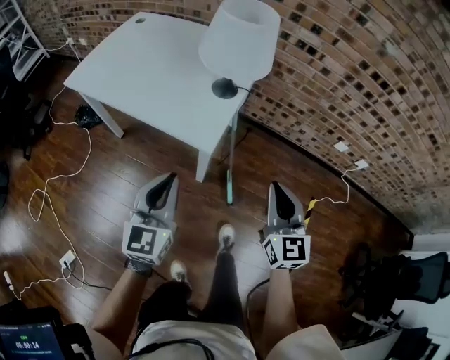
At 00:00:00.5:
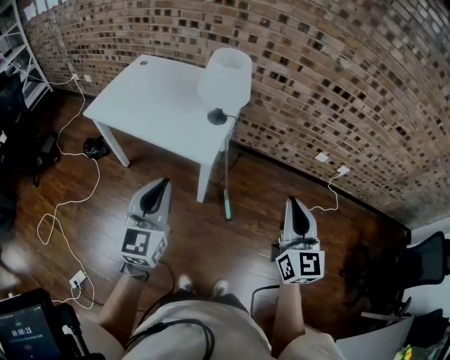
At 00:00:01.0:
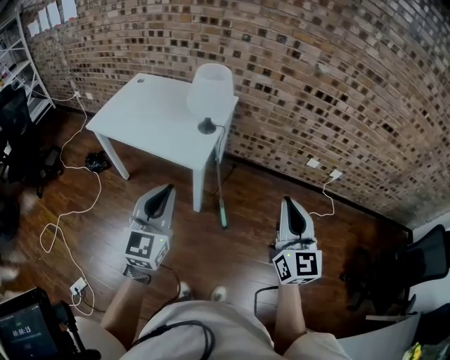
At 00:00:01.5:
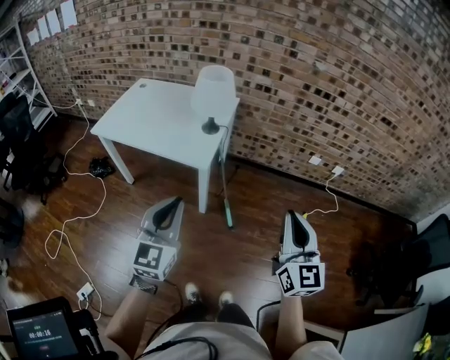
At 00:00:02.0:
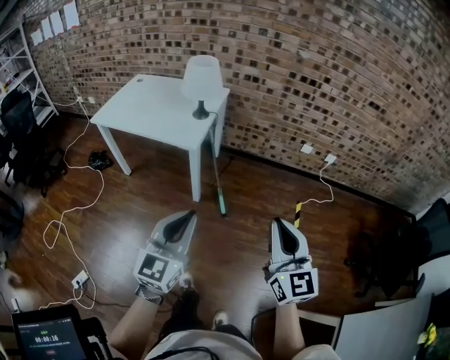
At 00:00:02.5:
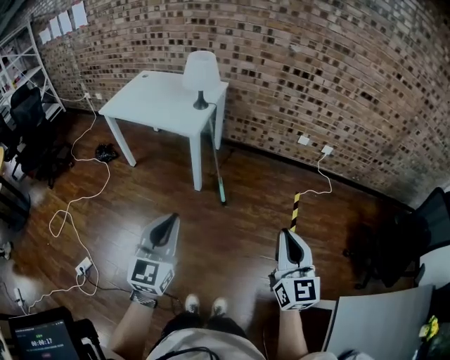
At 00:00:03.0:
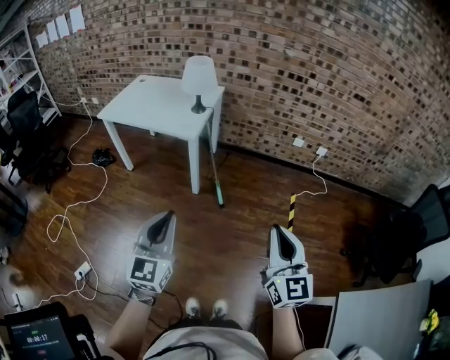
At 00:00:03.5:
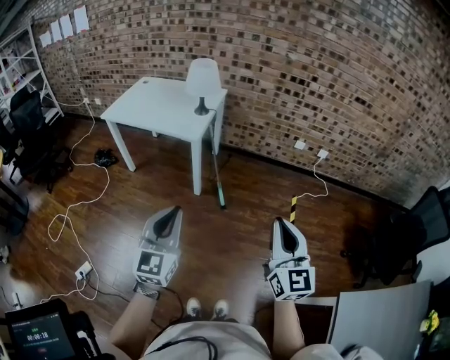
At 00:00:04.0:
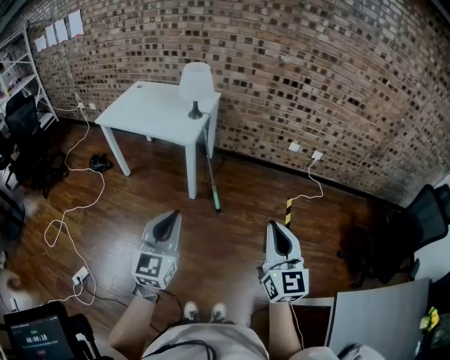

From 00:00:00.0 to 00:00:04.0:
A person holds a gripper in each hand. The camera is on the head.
From 00:00:00.0 to 00:00:02.0: The right gripper goes approximately 40 cm backward and upward, while the left gripper goes approximately 40 cm backward, upward and to the right.
From 00:00:02.0 to 00:00:04.0: The grippers both shift backward by roughly 15 cm.

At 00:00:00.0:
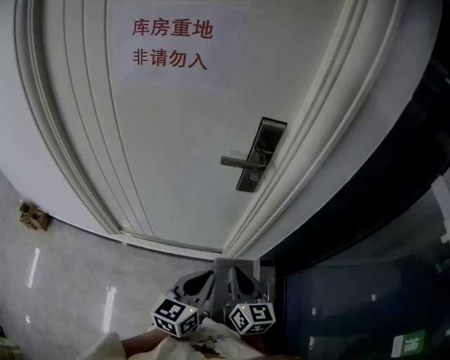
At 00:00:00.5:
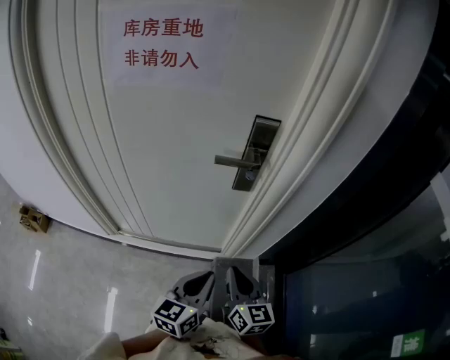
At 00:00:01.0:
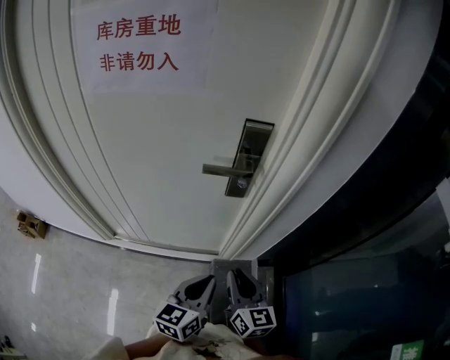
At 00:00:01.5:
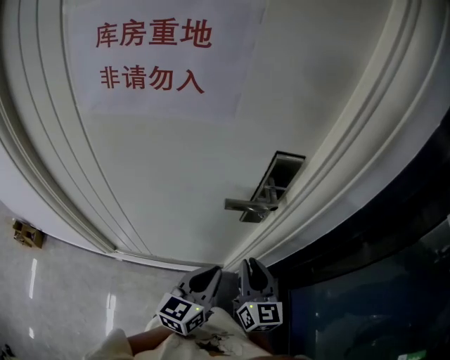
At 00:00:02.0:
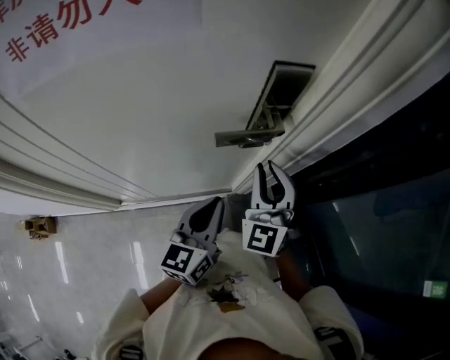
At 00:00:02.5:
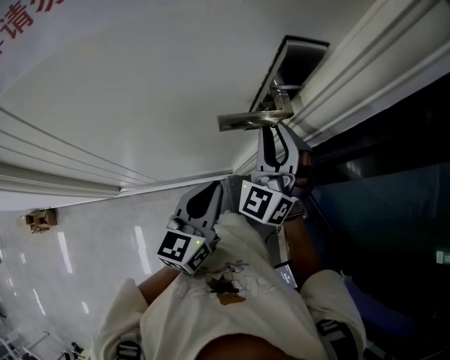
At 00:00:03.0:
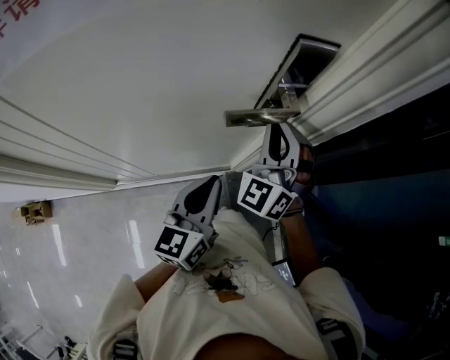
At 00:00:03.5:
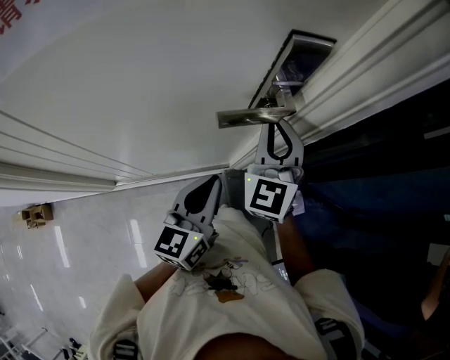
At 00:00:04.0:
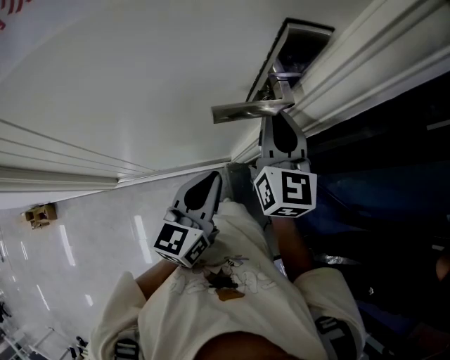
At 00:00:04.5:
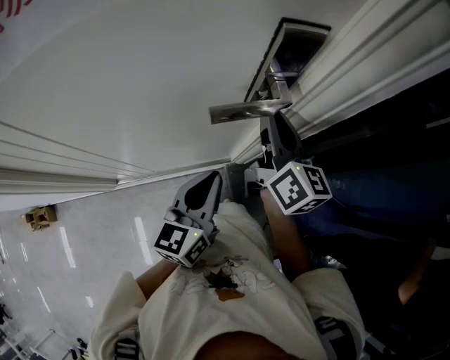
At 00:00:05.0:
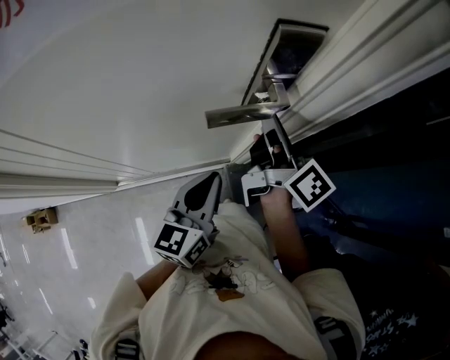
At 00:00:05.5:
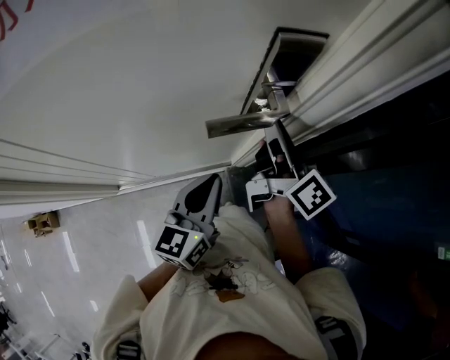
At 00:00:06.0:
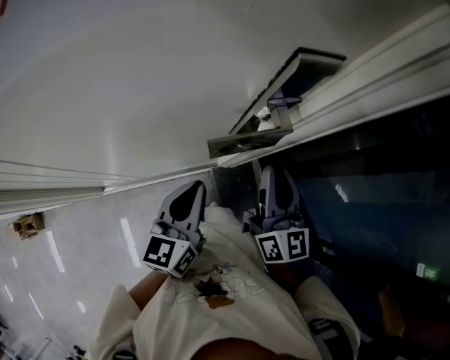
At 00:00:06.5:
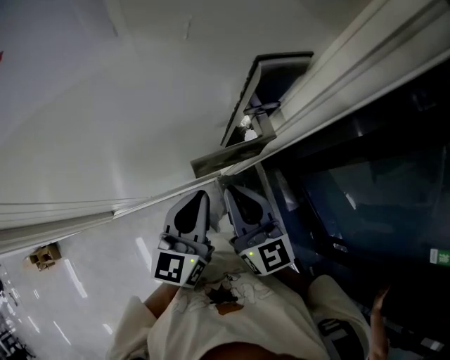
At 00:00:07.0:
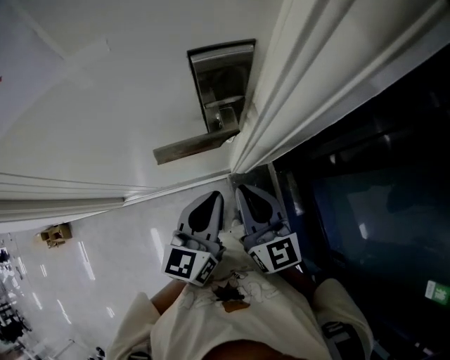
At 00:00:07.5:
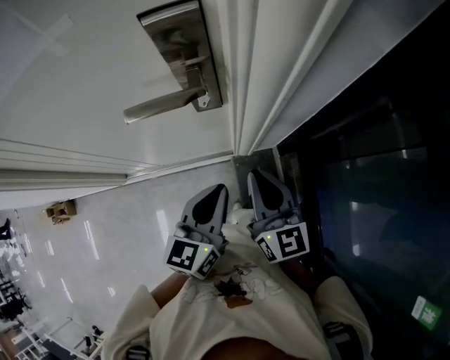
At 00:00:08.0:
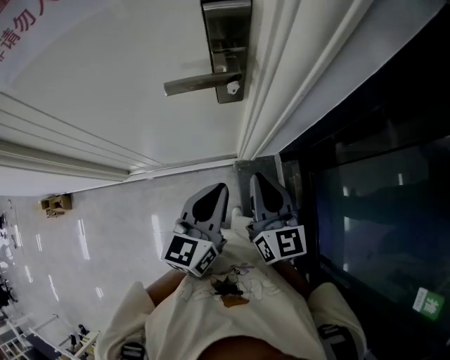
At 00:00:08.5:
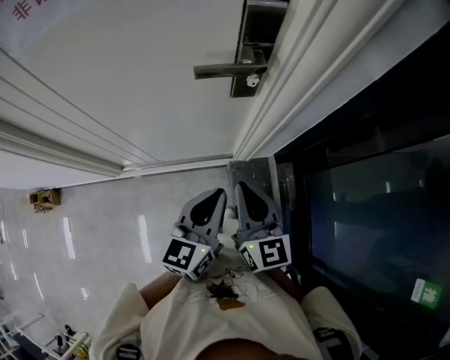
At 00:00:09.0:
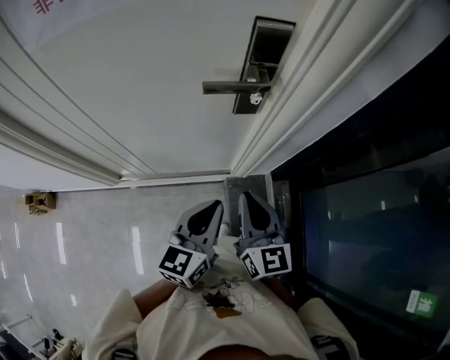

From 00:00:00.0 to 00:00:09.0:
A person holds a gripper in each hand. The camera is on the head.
From 00:00:00.0 to 00:00:02.0: Both grippers move forward, approximately 20 cm. The right gripper rolls counterclockwise, seen from behind, by roughly 50 degrees.
From 00:00:02.0 to 00:00:04.5: The right gripper is displaced forward by some 5 cm, and rotates around the line of its fingers by roughly 60 degrees, clockwise from behind.
From 00:00:04.5 to 00:00:07.0: The right gripper is displaced backward and downward by approximately 10 cm, and swivels about 20 degrees, while the left gripper travels to the right by roughly 5 cm.
From 00:00:07.0 to 00:00:09.0: Both grippers move backward, approximately 15 cm.

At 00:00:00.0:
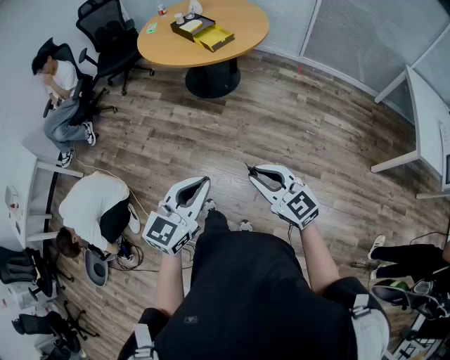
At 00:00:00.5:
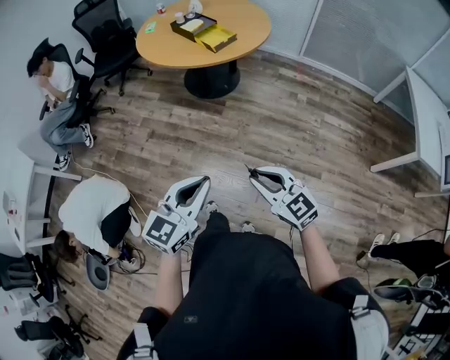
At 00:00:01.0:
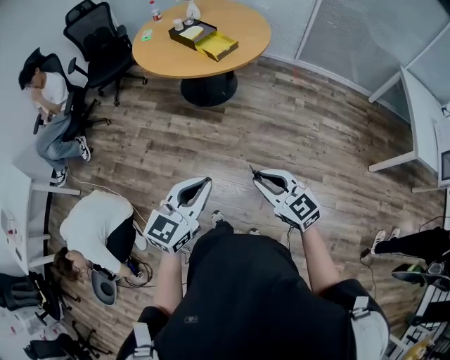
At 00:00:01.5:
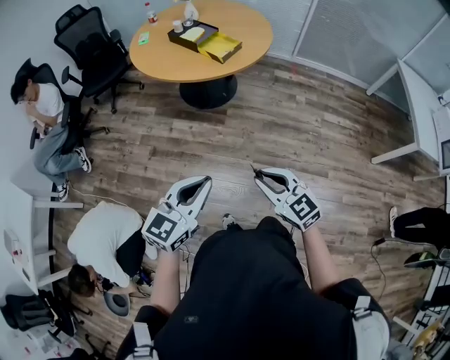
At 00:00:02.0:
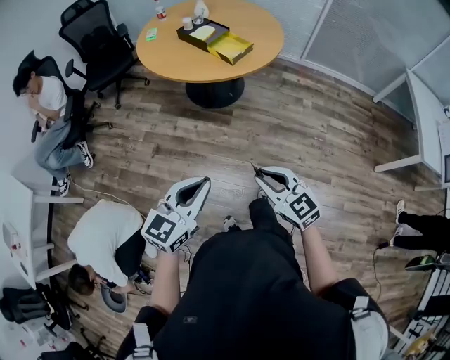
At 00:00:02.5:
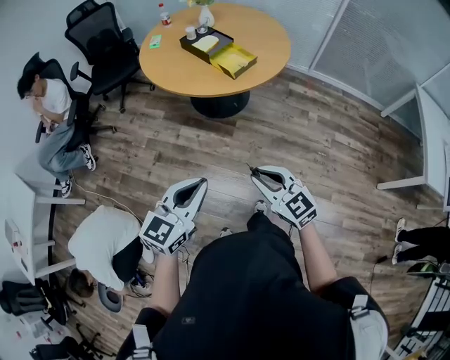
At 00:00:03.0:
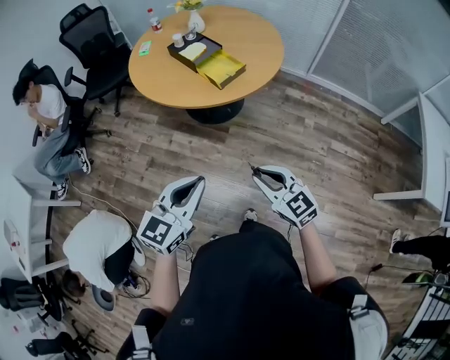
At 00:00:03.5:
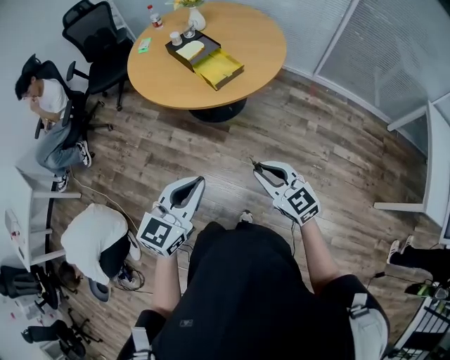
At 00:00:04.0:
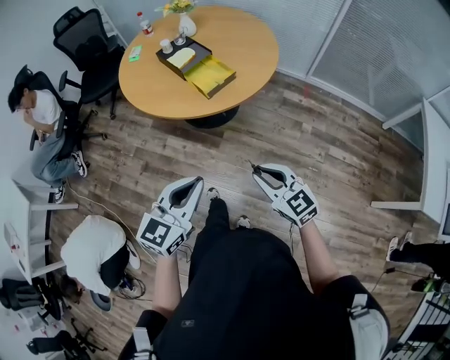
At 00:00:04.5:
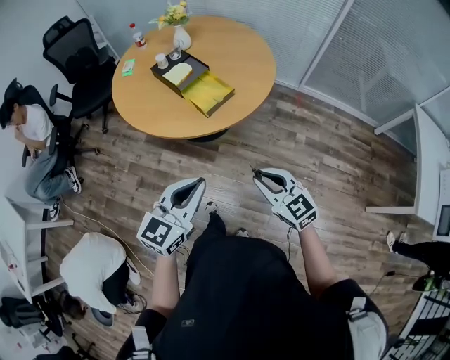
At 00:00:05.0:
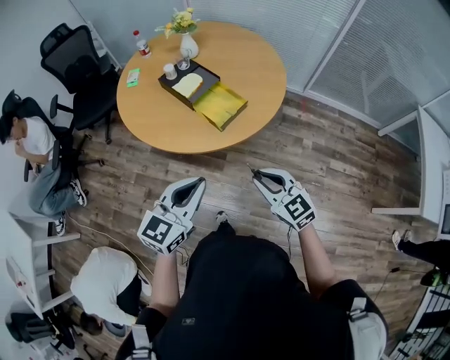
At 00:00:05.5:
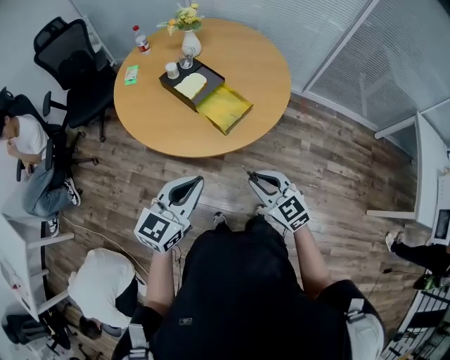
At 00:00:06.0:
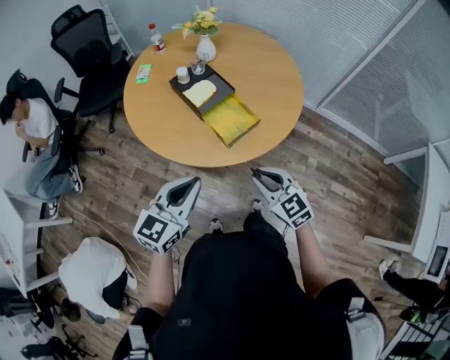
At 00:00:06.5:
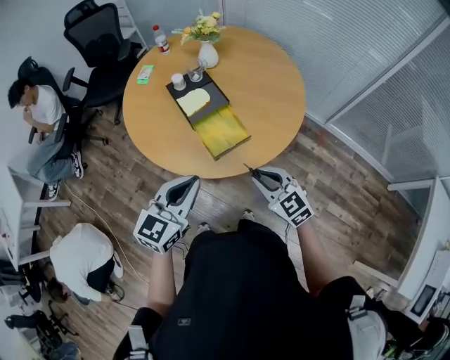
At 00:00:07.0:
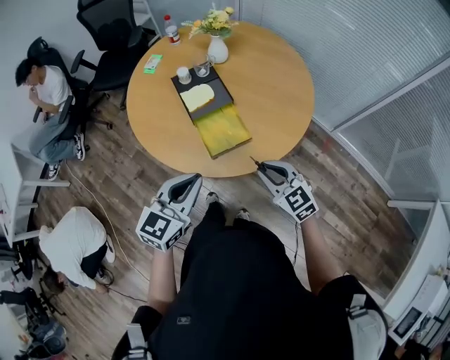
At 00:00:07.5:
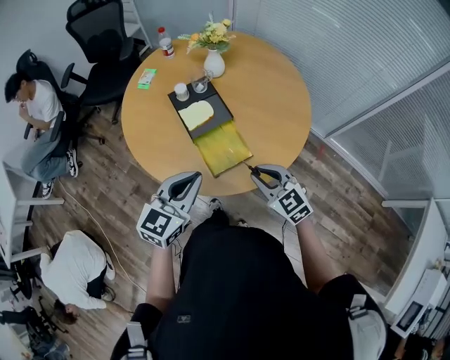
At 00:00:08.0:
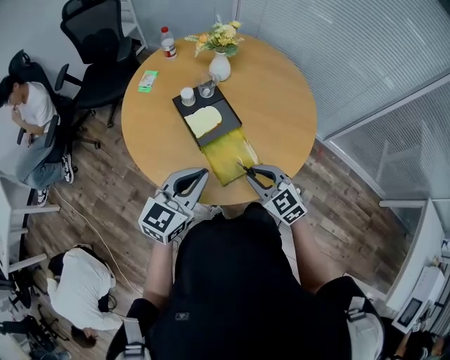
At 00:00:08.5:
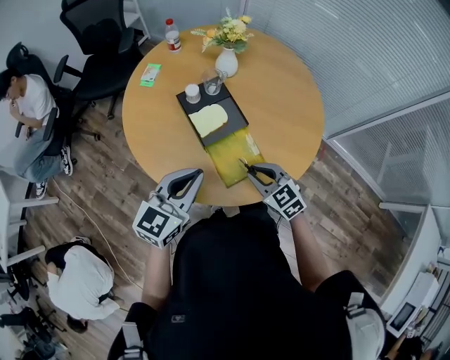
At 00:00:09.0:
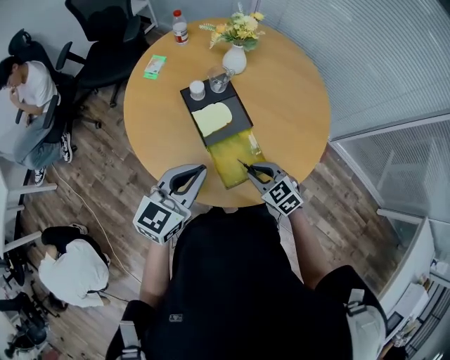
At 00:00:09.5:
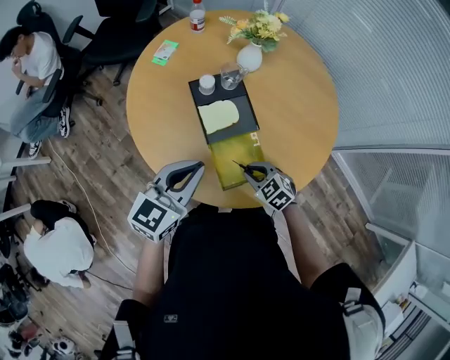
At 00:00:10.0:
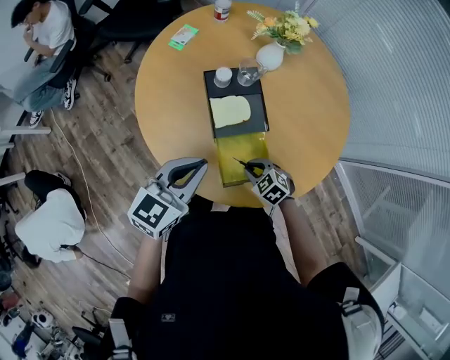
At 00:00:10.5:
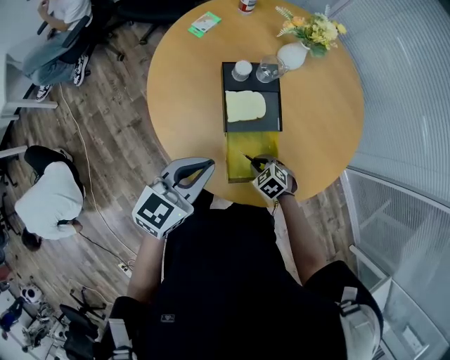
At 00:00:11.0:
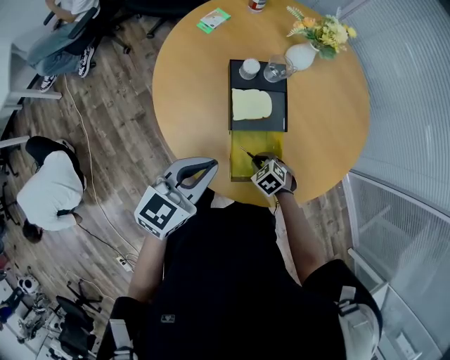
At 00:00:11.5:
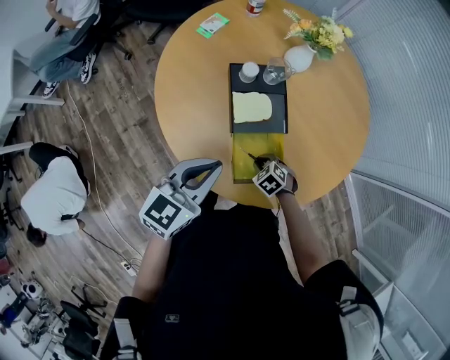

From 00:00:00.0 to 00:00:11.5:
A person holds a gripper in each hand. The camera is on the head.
From 00:00:00.0 to 00:00:02.0: The grippers both shift forward and to the left by about 25 cm.
From 00:00:02.0 to 00:00:04.0: The grippers both shift forward and to the right by some 30 cm.
From 00:00:04.0 to 00:00:06.0: Both grippers move forward, approximately 25 cm.
From 00:00:06.0 to 00:00:07.5: The grippers both shift forward and to the right by some 15 cm.
From 00:00:07.5 to 00:00:09.5: The left gripper shifts roughly 15 cm forward and to the left; the right gripper moves downward and forward, about 20 cm, and changes its angle by approximately 30 degrees.
From 00:00:09.5 to 00:00:11.5: The right gripper is displaced downward by roughly 10 cm, and changes its angle by some 20 degrees.

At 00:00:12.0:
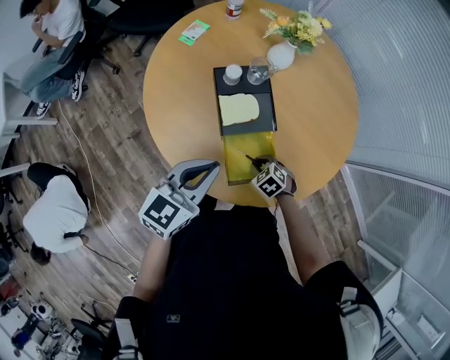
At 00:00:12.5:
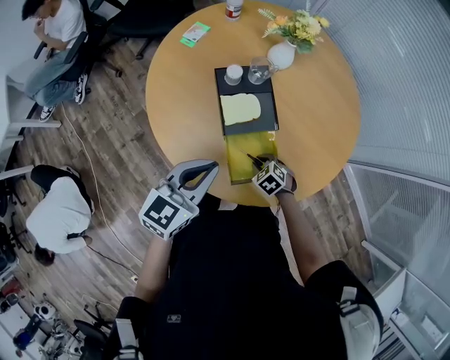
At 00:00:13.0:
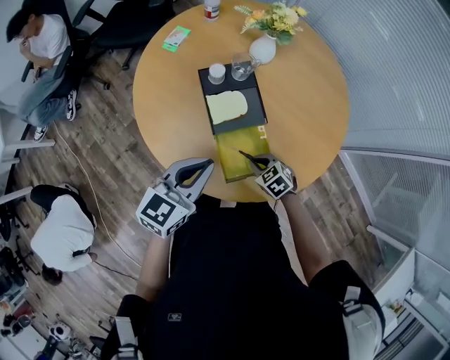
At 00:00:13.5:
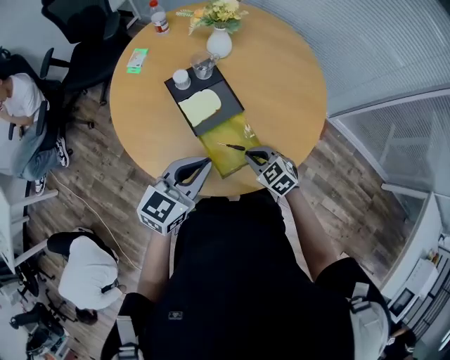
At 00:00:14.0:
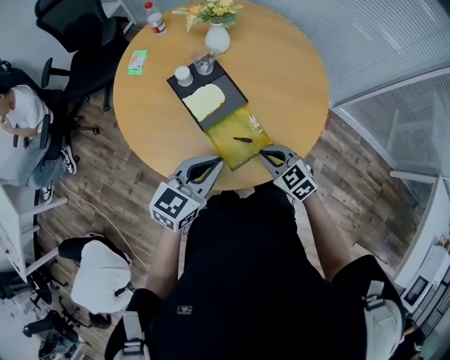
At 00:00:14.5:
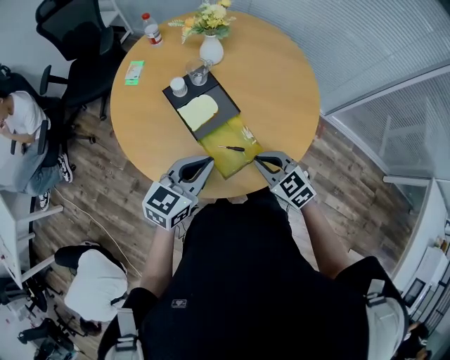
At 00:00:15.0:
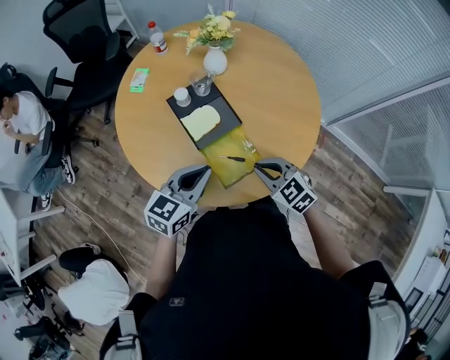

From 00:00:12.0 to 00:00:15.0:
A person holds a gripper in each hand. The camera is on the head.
From 00:00:12.0 to 00:00:13.5: The right gripper goes about 10 cm upward, and turns by roughly 30 degrees.
From 00:00:13.5 to 00:00:15.0: The right gripper goes roughly 10 cm upward.
